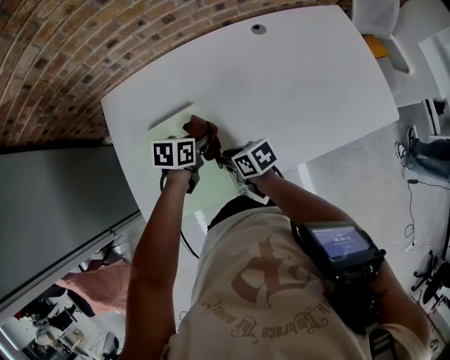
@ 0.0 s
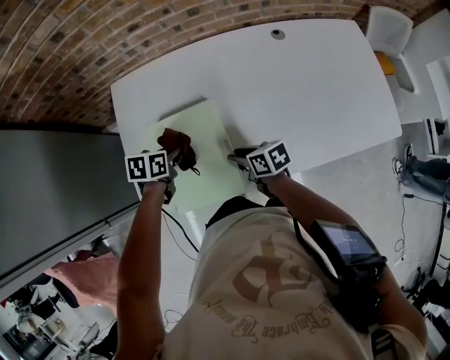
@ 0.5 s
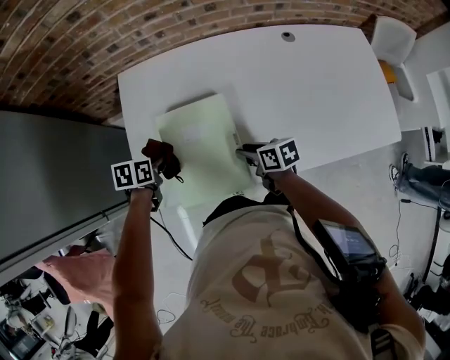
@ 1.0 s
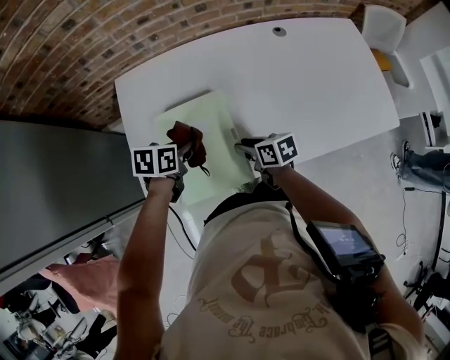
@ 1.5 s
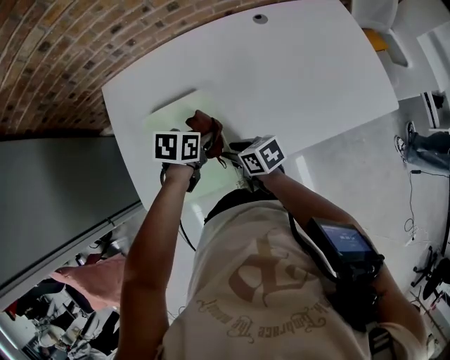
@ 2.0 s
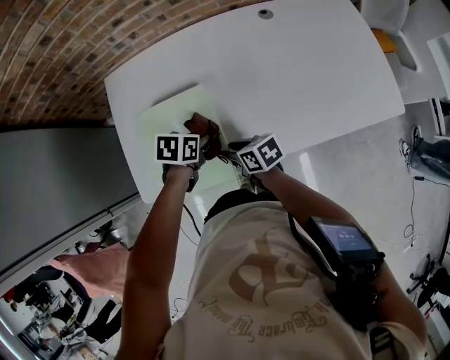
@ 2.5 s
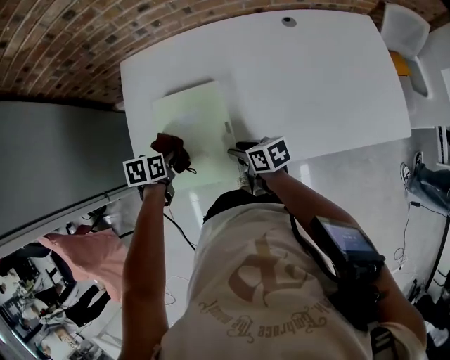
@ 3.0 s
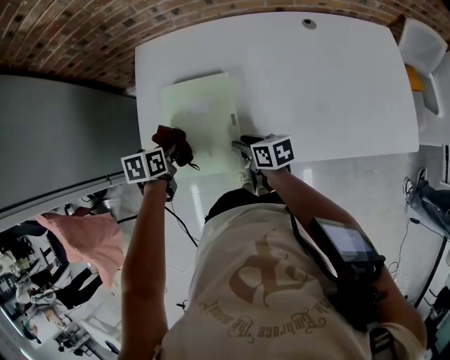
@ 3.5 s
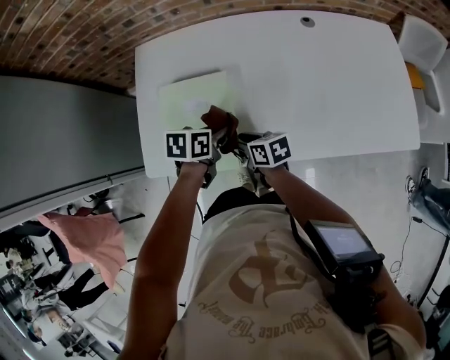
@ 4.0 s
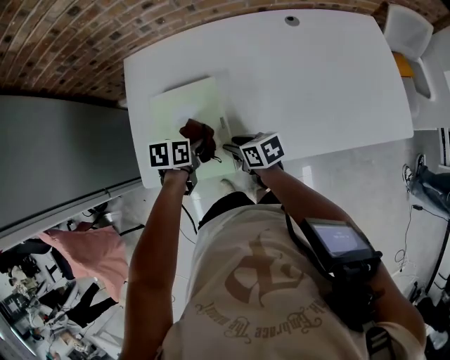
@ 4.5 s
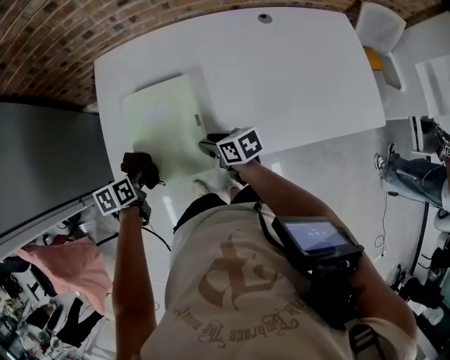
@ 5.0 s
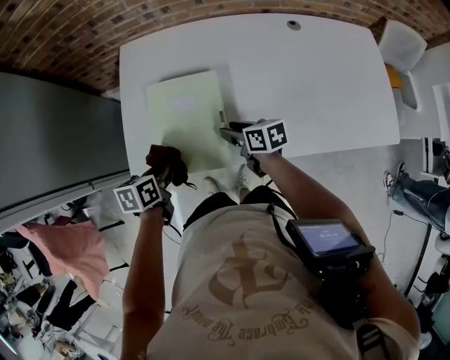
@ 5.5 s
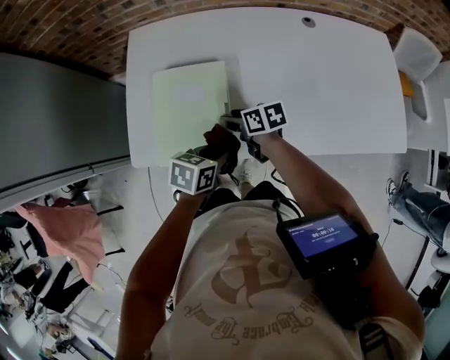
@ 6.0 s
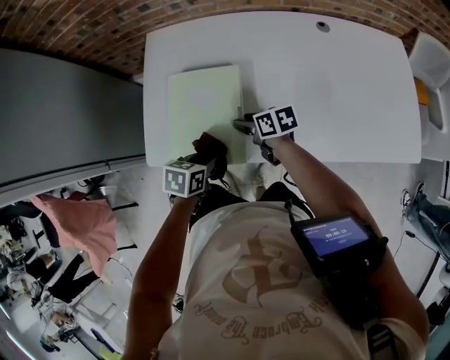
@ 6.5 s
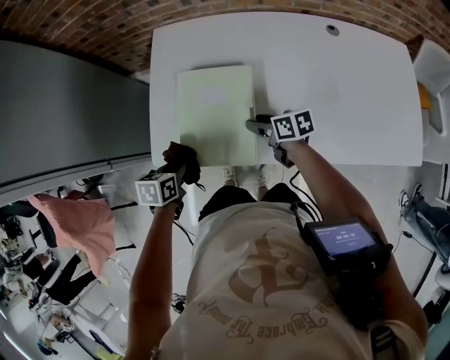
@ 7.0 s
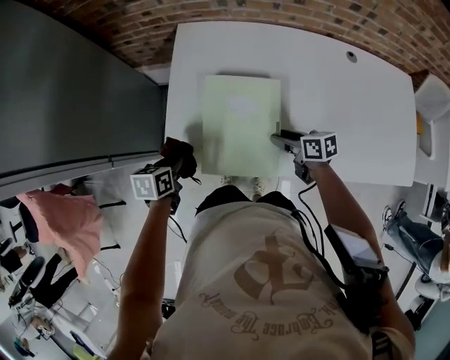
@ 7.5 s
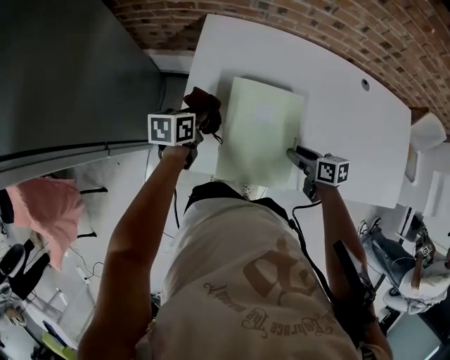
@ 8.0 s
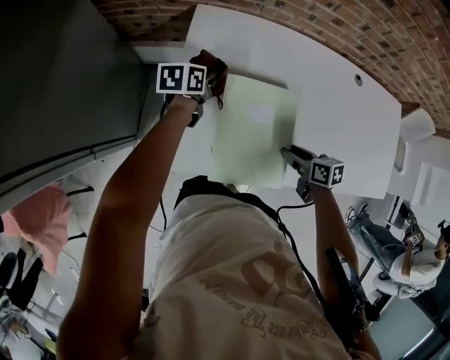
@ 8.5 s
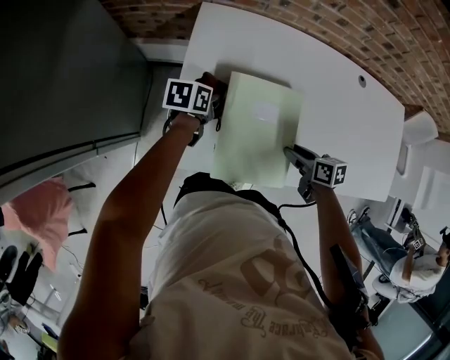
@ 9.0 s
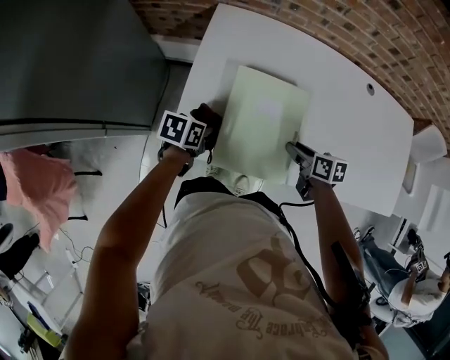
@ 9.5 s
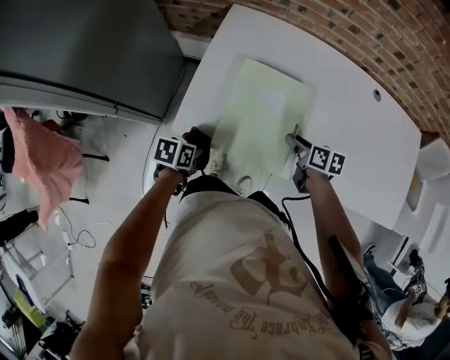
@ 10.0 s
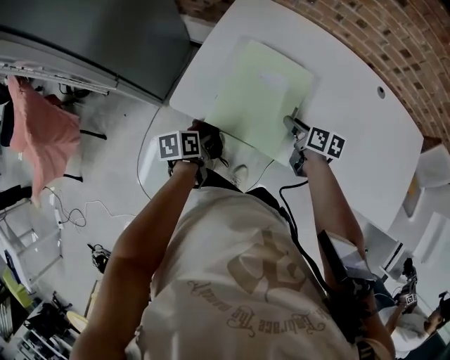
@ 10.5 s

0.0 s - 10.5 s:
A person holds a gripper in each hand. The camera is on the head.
6.5 s - 8.5 s: The left gripper is displaced forward and to the left by approximately 35 cm, and changes its angle by roughly 20 degrees.
8.5 s - 10.5 s: The left gripper is displaced backward by some 35 cm, and swivels approximately 30 degrees.

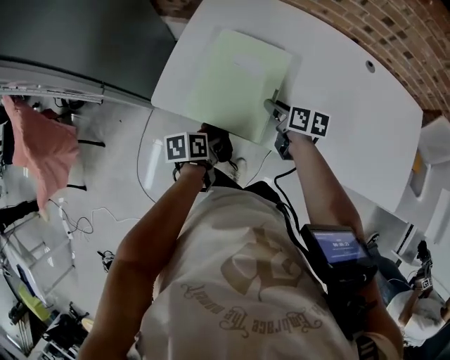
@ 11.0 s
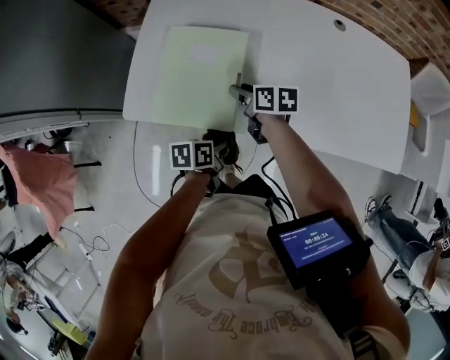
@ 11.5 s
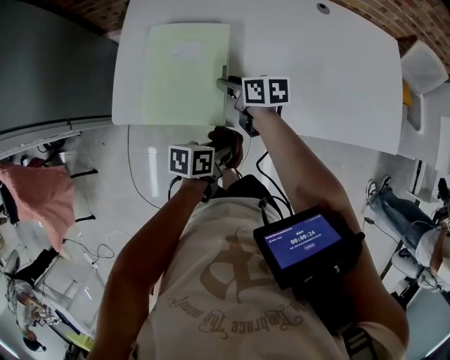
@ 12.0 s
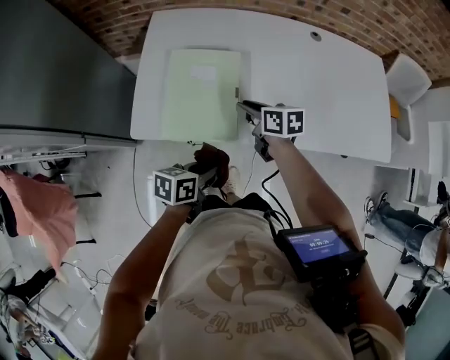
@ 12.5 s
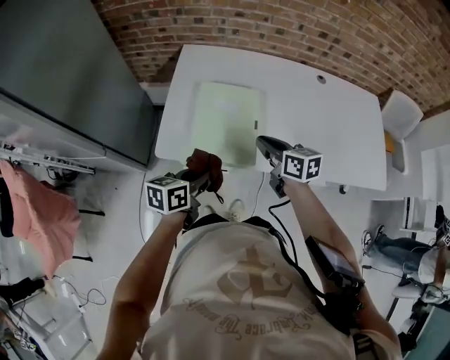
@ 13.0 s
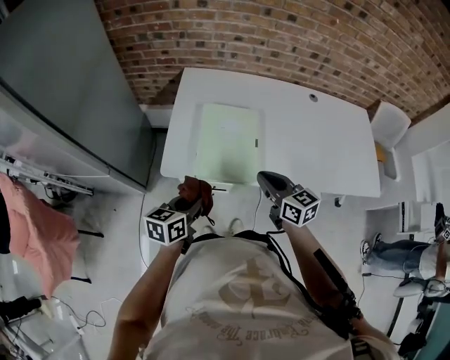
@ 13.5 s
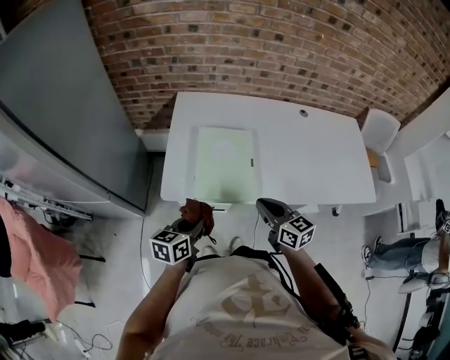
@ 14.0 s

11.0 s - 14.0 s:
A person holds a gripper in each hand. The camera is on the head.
11.0 s - 12.5 s: The right gripper shifts some 5 cm upward. Meanwhile the left gripper moves upward, to the right and backward, about 10 cm, and rotates approximately 40 degrees.
12.5 s - 14.0 s: The right gripper heads backward and upward, covering approximately 15 cm, swivels roughly 30 degrees, and closes; the left gripper travels to the left by approximately 15 cm, and rotates approximately 20 degrees.

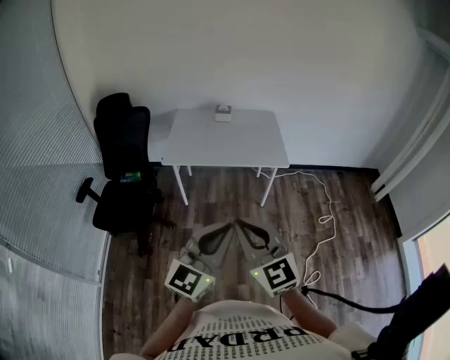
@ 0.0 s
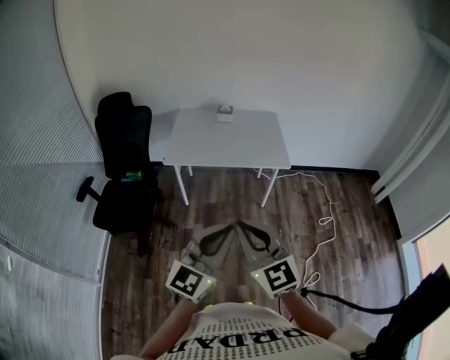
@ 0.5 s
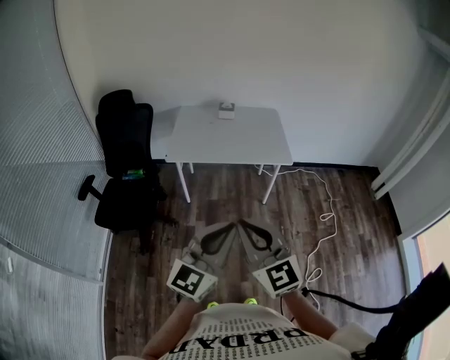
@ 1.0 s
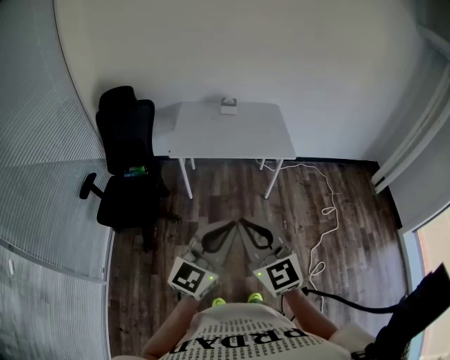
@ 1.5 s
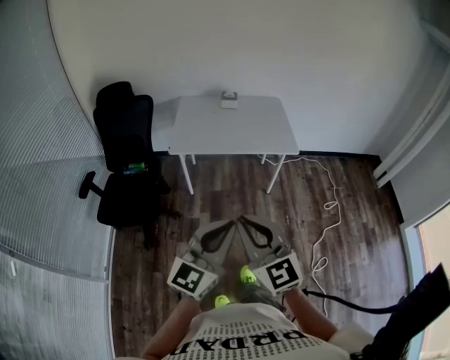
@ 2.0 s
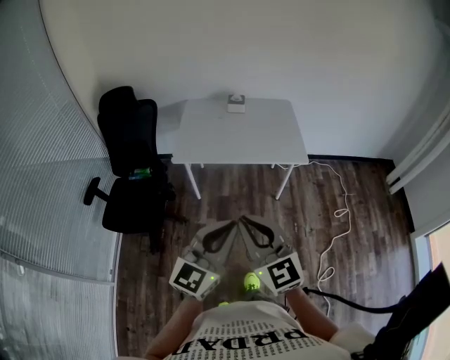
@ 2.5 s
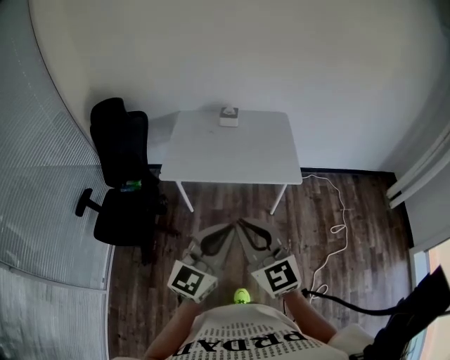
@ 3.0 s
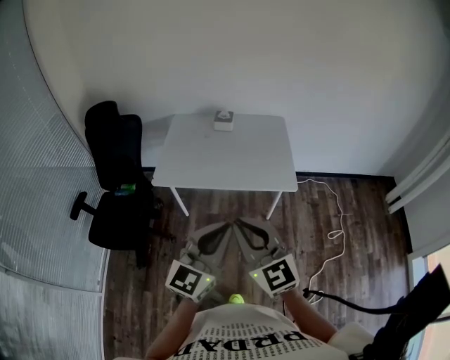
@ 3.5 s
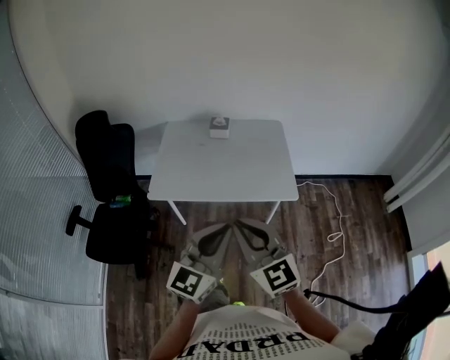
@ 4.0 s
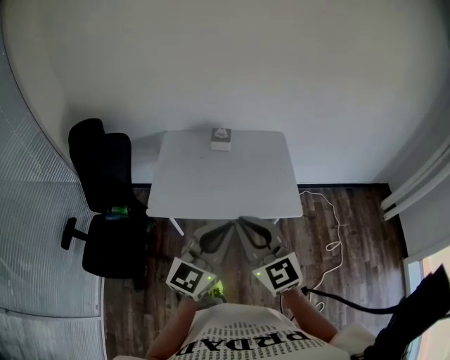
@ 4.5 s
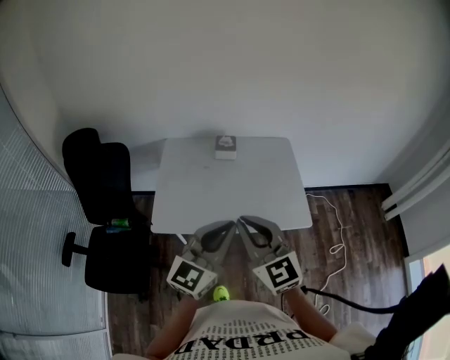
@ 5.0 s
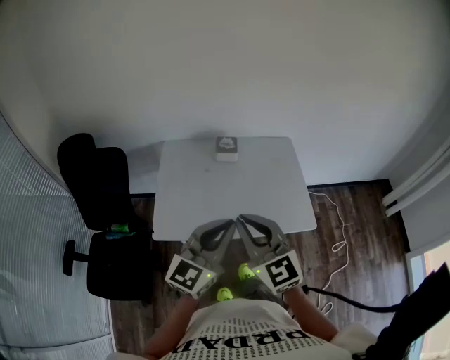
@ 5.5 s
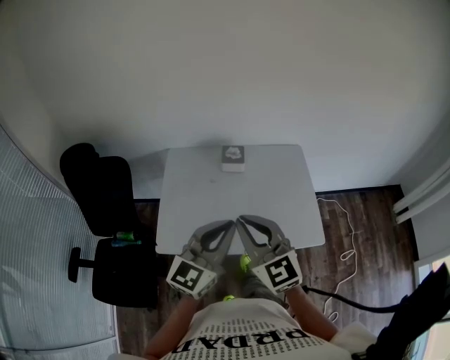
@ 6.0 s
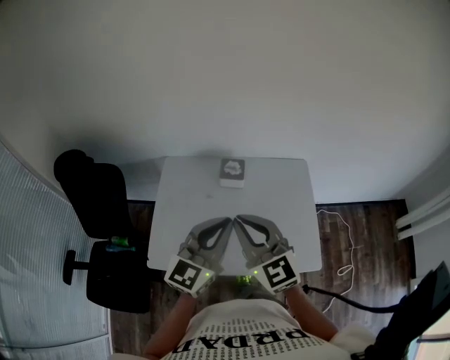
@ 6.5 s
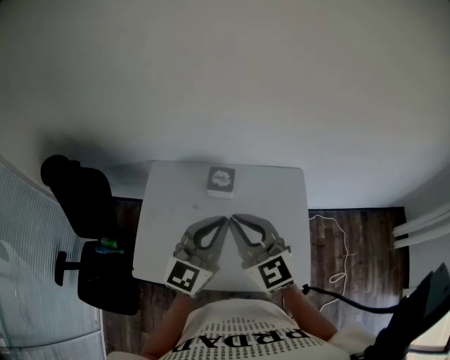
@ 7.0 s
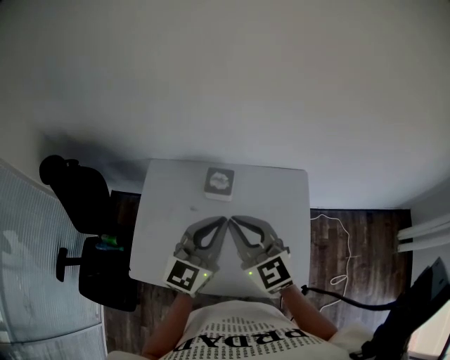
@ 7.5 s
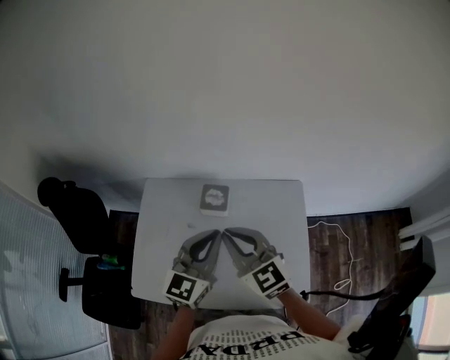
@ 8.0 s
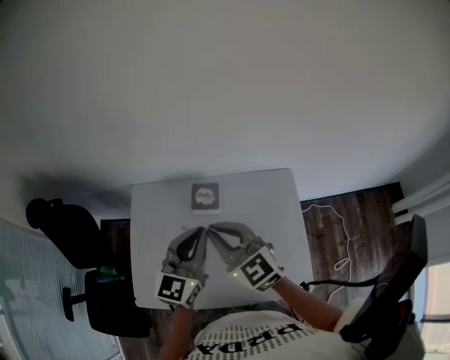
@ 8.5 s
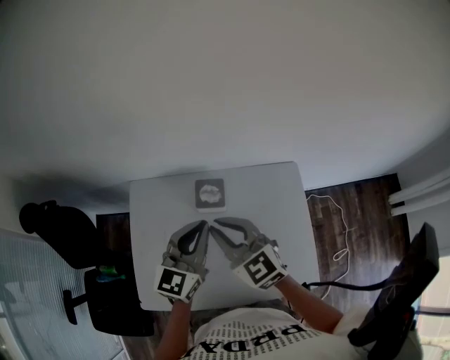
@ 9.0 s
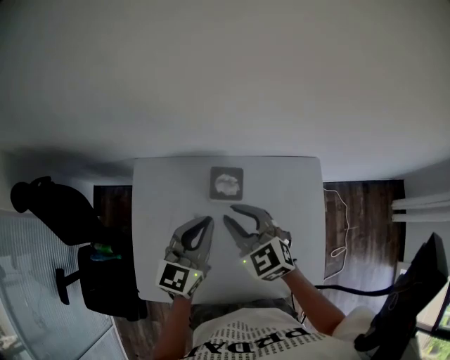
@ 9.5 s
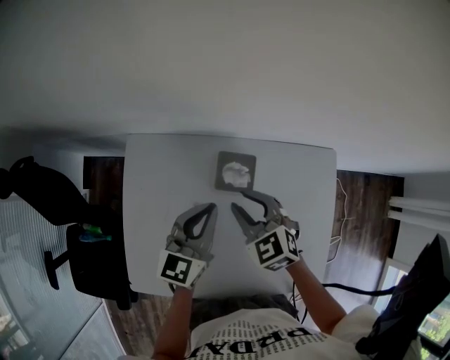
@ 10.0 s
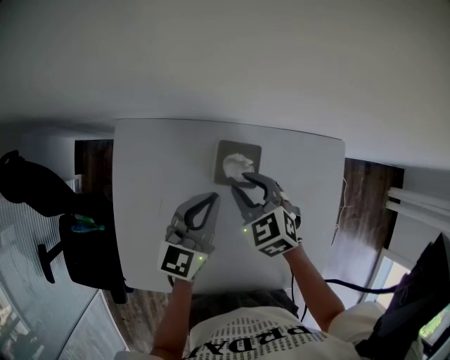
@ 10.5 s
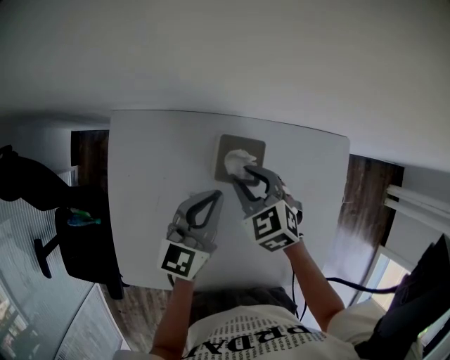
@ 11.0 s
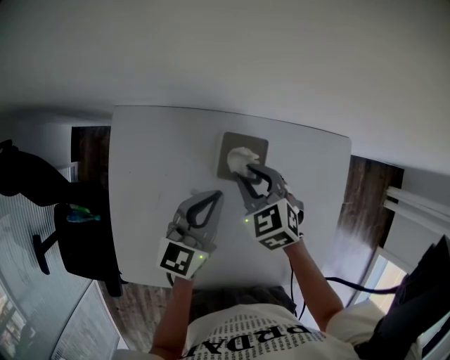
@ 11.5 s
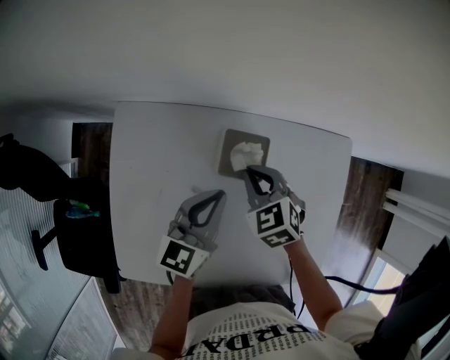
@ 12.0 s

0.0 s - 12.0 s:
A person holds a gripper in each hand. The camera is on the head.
0.0 s - 2.0 s: The grippers both shift to the left by approximately 5 cm.
2.0 s - 4.0 s: Both grippers move forward, about 30 cm.
4.0 s - 6.0 s: Both grippers move forward, approximately 30 cm.
6.0 s - 8.0 s: Both grippers move forward, some 25 cm.
8.0 s - 10.0 s: The right gripper heads downward and forward, covering roughly 25 cm, rotates approximately 30 degrees, and opens up. The left gripper goes approximately 25 cm downward, forward and to the left.
10.0 s - 12.0 s: The two grippers go roughly 5 cm downward. The right gripper closes its fingers.

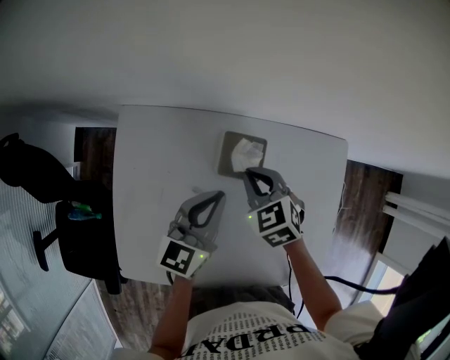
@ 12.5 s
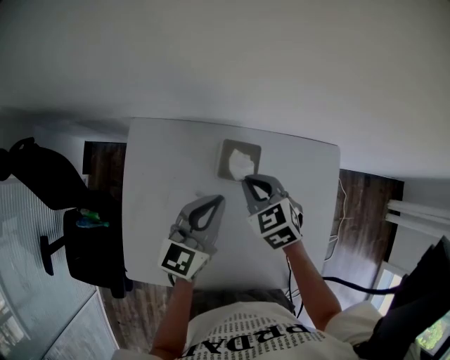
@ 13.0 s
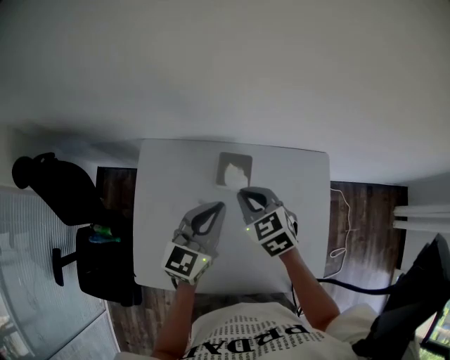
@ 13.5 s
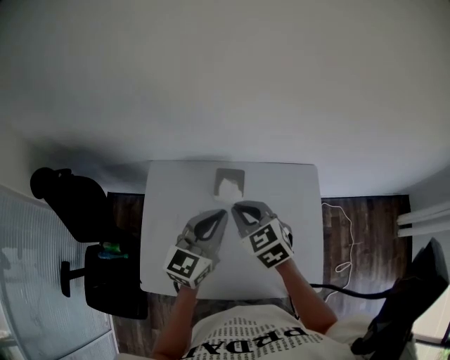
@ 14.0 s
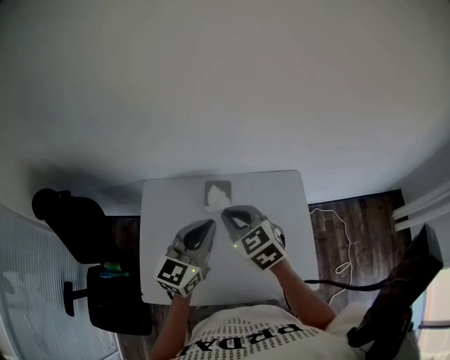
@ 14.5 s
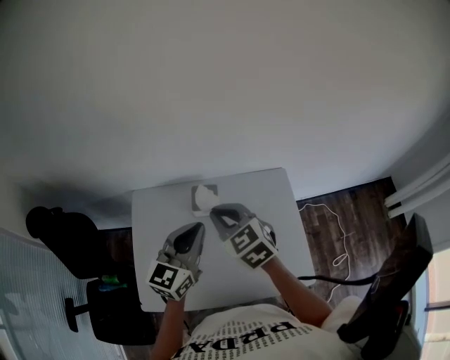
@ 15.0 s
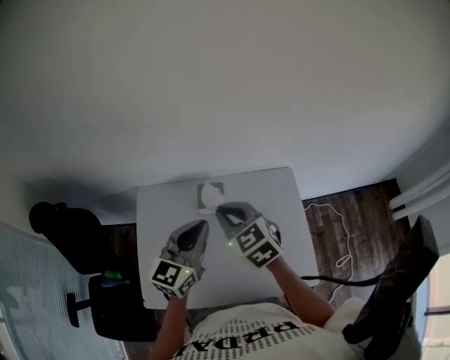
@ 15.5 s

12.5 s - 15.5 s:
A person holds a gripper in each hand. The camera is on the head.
12.5 s - 14.0 s: The grippers both shift upward and backward by some 20 cm.
14.0 s - 15.5 s: The right gripper is displaced upward by some 5 cm.
